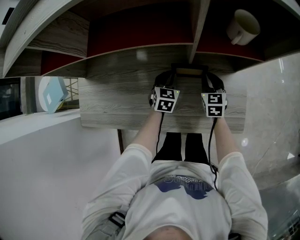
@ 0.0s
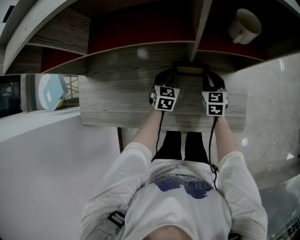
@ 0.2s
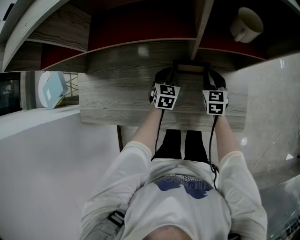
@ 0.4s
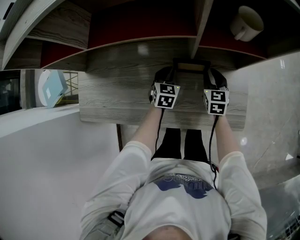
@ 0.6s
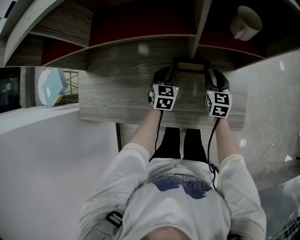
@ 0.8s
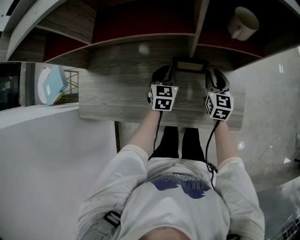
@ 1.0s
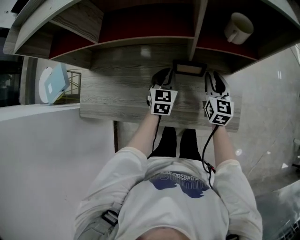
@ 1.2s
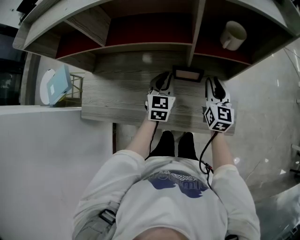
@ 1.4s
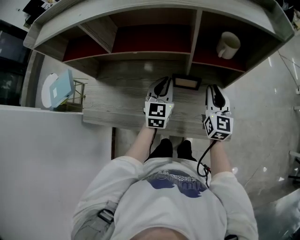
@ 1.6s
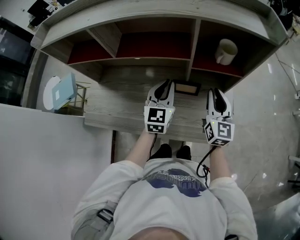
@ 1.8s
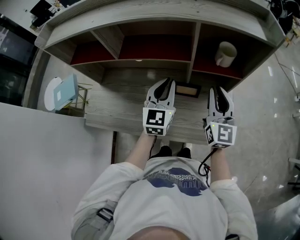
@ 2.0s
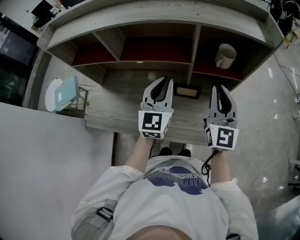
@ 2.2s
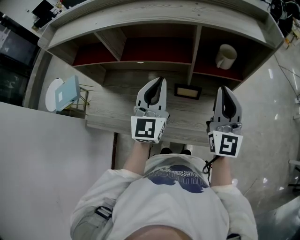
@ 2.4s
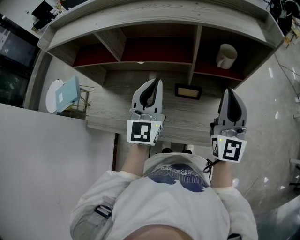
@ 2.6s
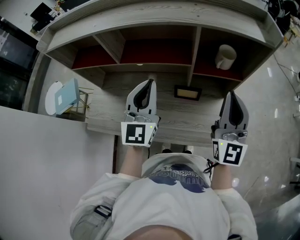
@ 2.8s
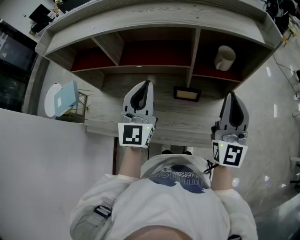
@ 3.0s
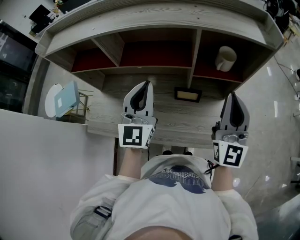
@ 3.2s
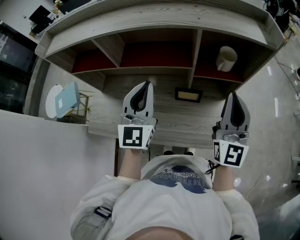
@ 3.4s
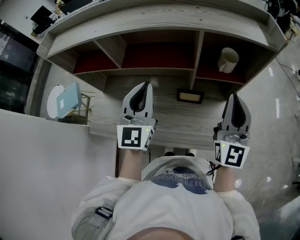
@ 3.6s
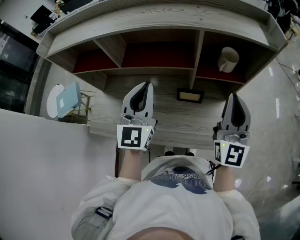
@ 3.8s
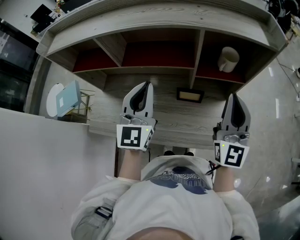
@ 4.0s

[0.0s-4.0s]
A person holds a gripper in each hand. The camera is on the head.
0.0s to 1.4s: Both grippers travel together upward, roughly 15 cm. The right gripper swivels about 20 degrees.
1.4s to 2.6s: The grippers both shift upward by approximately 25 cm. The right gripper swivels roughly 30 degrees, and closes up; the left gripper rotates about 30 degrees.
2.6s to 4.0s: The grippers make only small movements.

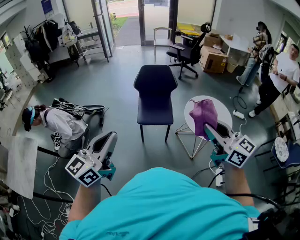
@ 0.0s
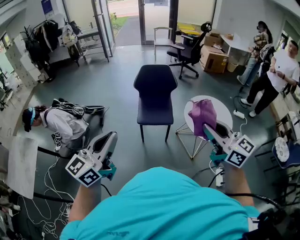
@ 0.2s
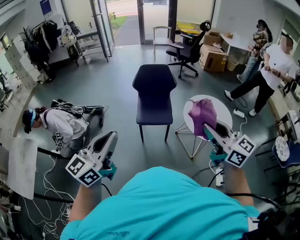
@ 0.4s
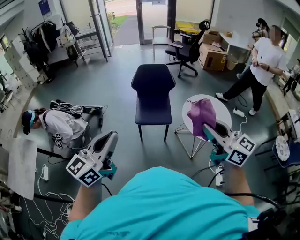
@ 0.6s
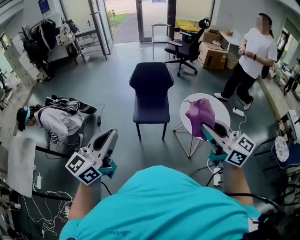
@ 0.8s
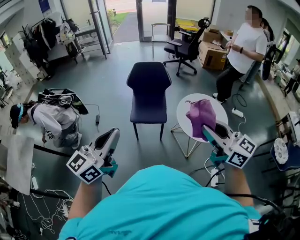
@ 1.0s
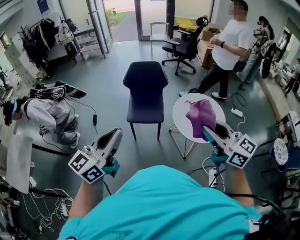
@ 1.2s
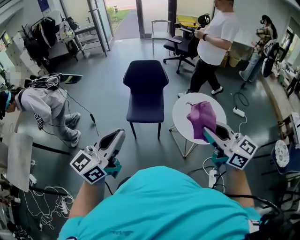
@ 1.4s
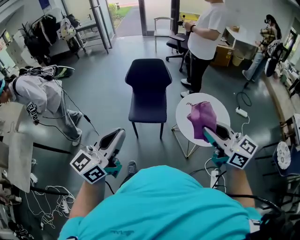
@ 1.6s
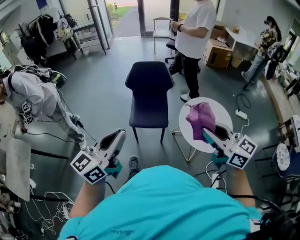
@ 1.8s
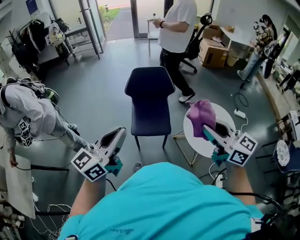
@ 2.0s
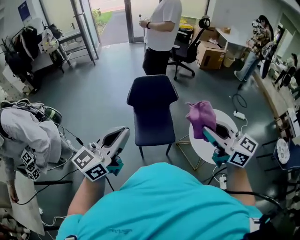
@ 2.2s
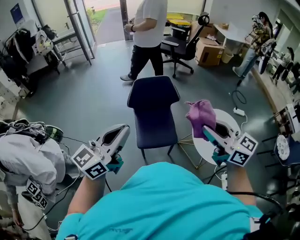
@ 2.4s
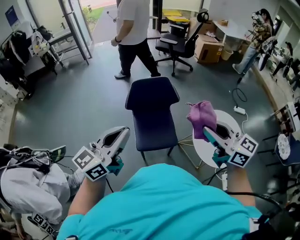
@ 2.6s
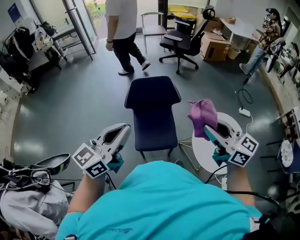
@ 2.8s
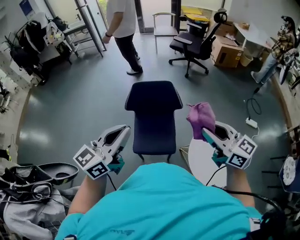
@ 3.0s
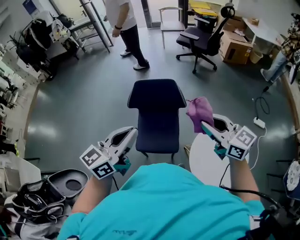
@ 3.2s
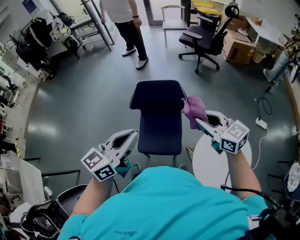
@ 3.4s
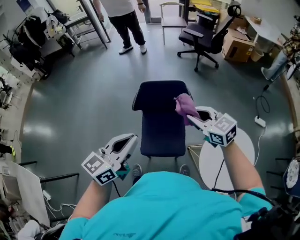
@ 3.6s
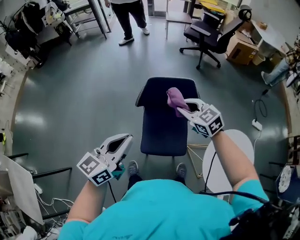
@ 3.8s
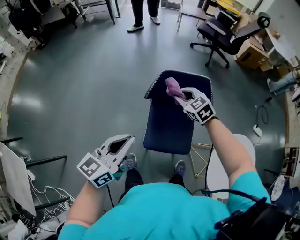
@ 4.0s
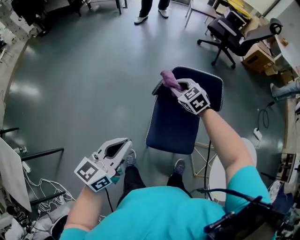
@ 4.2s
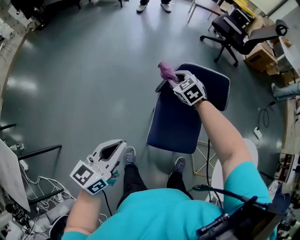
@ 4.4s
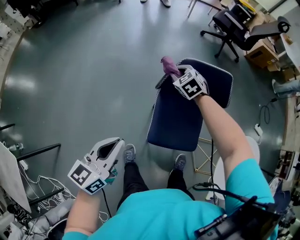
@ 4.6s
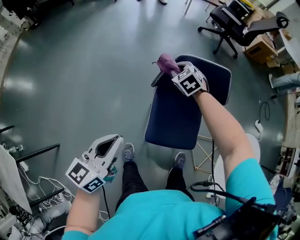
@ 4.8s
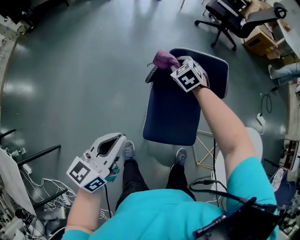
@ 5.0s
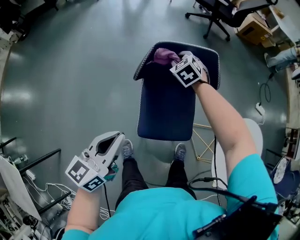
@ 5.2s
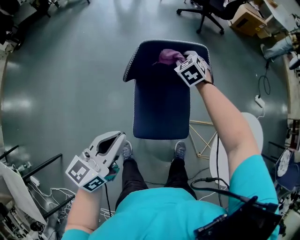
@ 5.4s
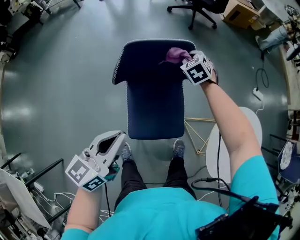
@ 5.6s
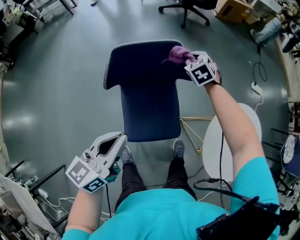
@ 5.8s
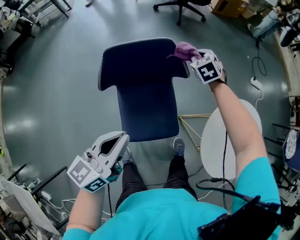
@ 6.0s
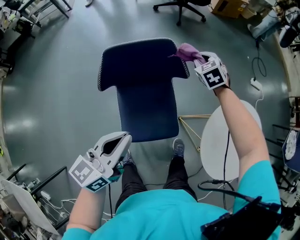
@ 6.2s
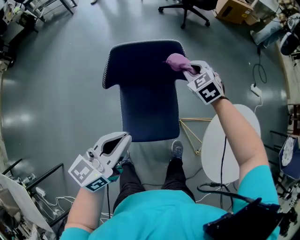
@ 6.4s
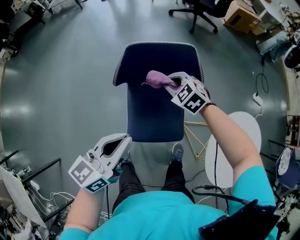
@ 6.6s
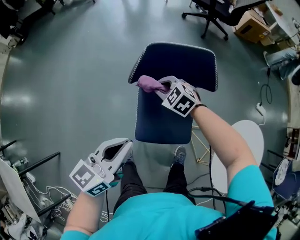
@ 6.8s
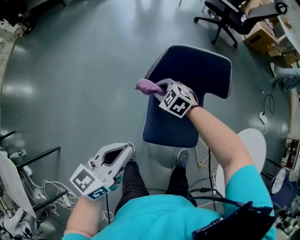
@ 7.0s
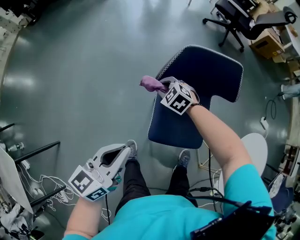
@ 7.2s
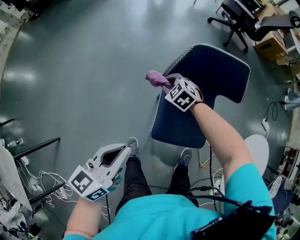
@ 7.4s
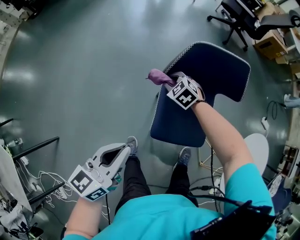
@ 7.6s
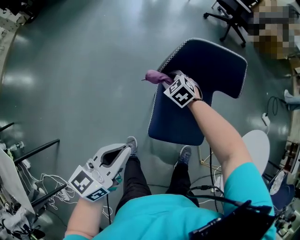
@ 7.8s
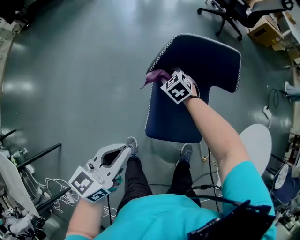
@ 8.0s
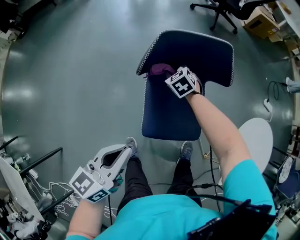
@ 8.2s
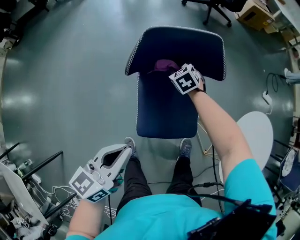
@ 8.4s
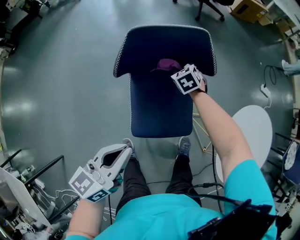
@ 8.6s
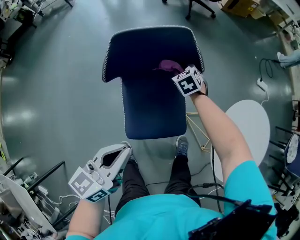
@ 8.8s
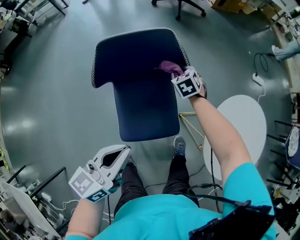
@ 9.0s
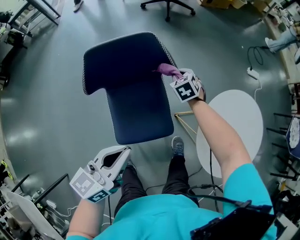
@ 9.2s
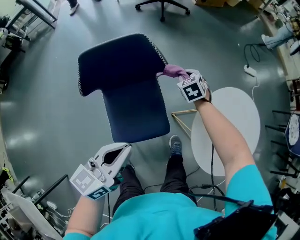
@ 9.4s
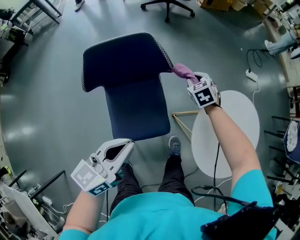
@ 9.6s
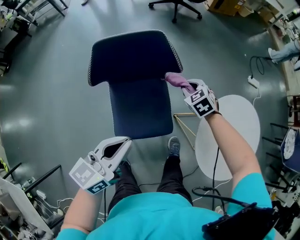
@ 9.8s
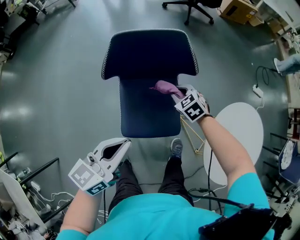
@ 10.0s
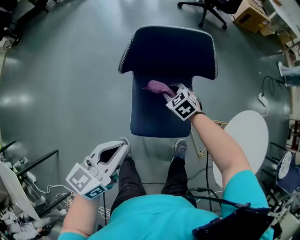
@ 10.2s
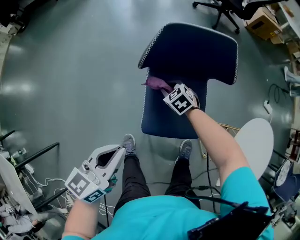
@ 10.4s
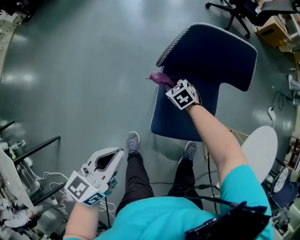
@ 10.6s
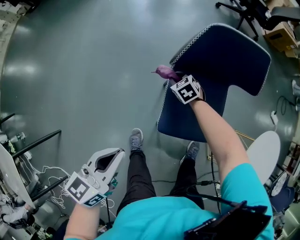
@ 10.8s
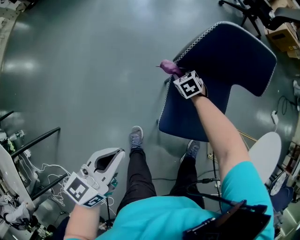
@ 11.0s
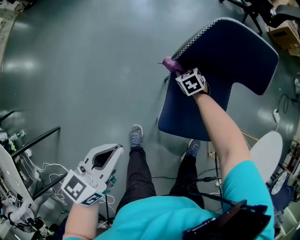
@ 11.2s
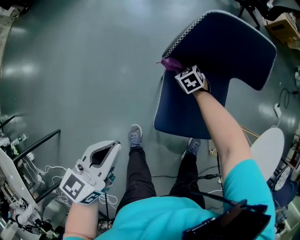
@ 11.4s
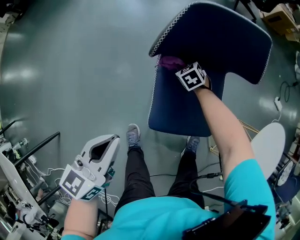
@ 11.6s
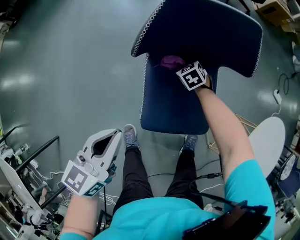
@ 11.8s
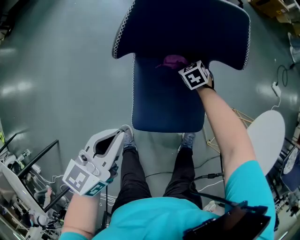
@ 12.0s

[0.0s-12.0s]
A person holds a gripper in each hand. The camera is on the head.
0.0s to 1.6s: Both grippers travel together to the right and forward, some 20 cm.
1.6s to 3.0s: Both grippers are carried forward, about 40 cm.
3.0s to 4.4s: The left gripper moves to the left and downward, approximately 35 cm, and rotates approximately 20 degrees, while the right gripper is displaced forward, to the left and downward by approximately 70 cm, and tilts its fingers approximately 40 degrees downward.
4.4s to 6.0s: The left gripper ends up approximately 25 cm from where it was, and turns by approximately 20 degrees. The right gripper shifts by about 40 cm, and swivels roughly 40 degrees.
6.0s to 7.6s: The right gripper moves roughly 50 cm, and turns by roughly 40 degrees. Meanwhile the left gripper shifts by roughly 30 cm.
7.6s to 9.0s: The right gripper ends up about 40 cm from where it was, and rotates about 40 degrees. The left gripper shifts by about 25 cm, and turns by approximately 20 degrees.
9.0s to 10.4s: The right gripper changes place by some 30 cm, and swivels about 30 degrees; the left gripper changes place by approximately 15 cm.
10.4s to 12.0s: The left gripper travels downward and forward by some 15 cm, and travels to the left and back again, approximately 15 cm each way. The right gripper is displaced to the right, downward and forward by roughly 20 cm.

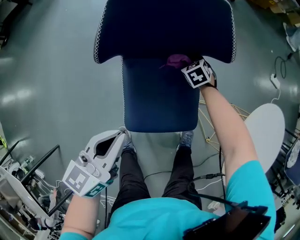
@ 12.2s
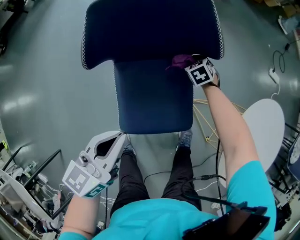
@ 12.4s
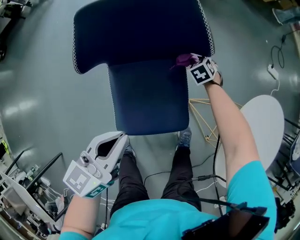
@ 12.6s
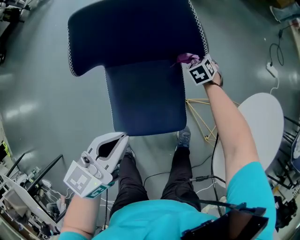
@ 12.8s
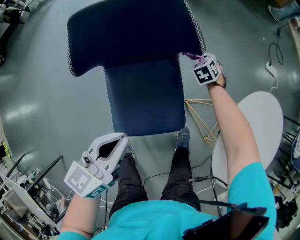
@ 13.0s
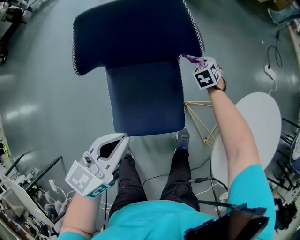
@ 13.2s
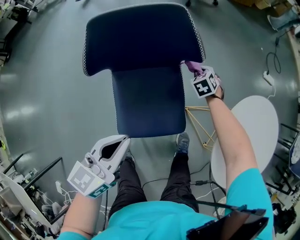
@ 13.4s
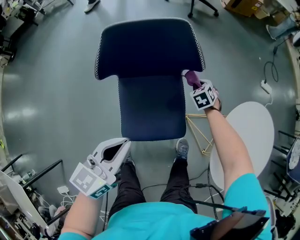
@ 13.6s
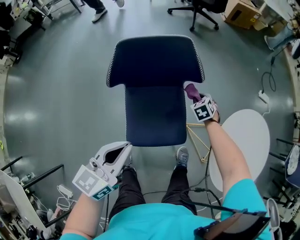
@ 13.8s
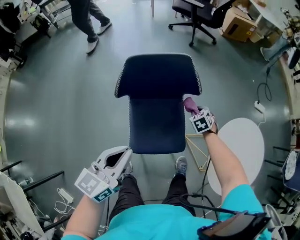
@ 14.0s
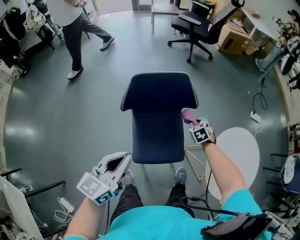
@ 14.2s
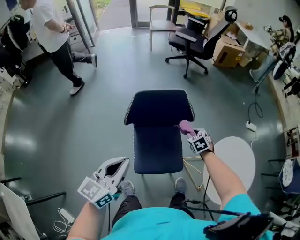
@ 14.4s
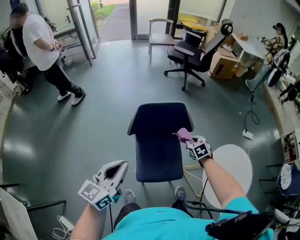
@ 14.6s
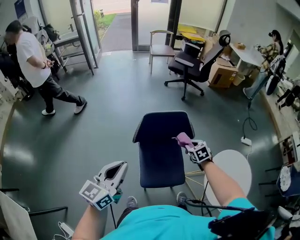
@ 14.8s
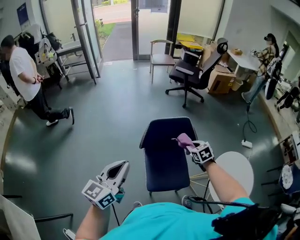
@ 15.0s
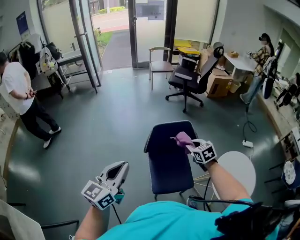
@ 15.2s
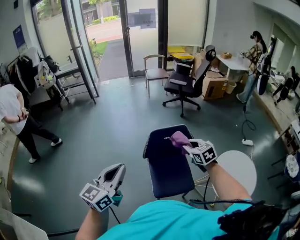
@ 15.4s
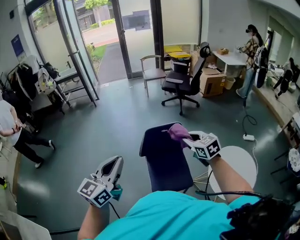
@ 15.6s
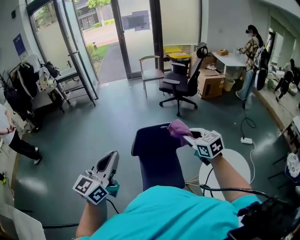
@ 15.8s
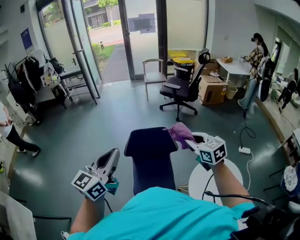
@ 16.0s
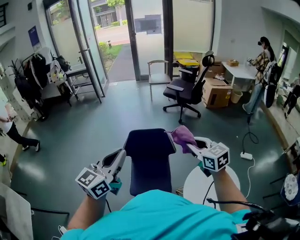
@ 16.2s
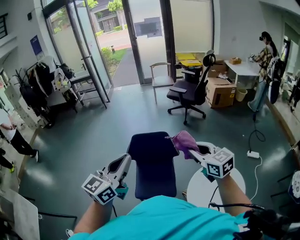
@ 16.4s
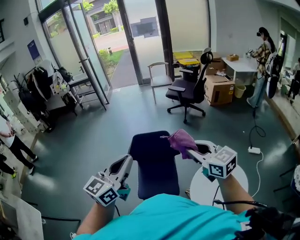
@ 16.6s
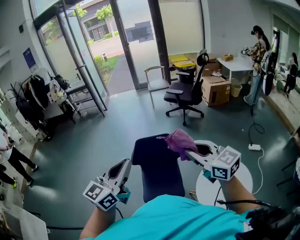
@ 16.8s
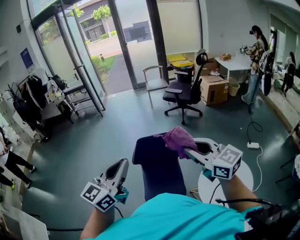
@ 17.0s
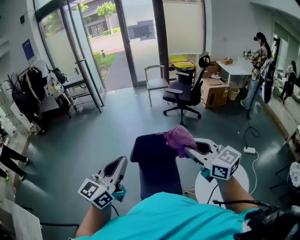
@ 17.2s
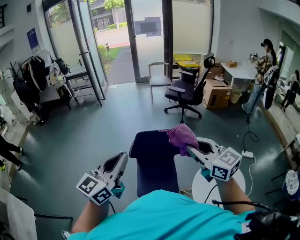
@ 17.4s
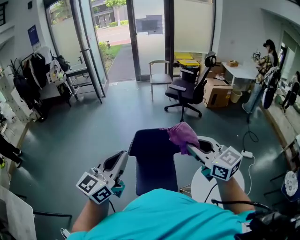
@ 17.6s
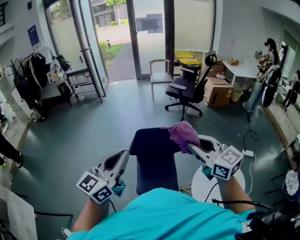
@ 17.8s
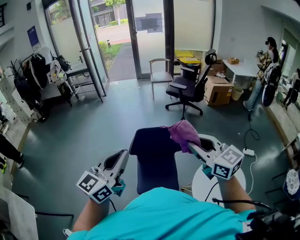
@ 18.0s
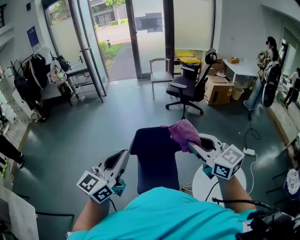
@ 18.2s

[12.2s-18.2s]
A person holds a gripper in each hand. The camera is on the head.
12.2s to 13.8s: The right gripper goes roughly 20 cm to the right and upward. Meanwhile the left gripper travels upward and to the right by roughly 15 cm.
13.8s to 15.2s: Both grippers move upward and to the left, approximately 40 cm. The right gripper turns by about 30 degrees.
15.2s to 16.6s: The left gripper travels to the right by about 30 cm, while the right gripper is displaced upward, to the right and backward by approximately 35 cm, and tilts its fingers about 30 degrees upward.
16.6s to 18.2s: The right gripper goes some 10 cm to the left and upward, while the left gripper heads to the left, covering about 10 cm.

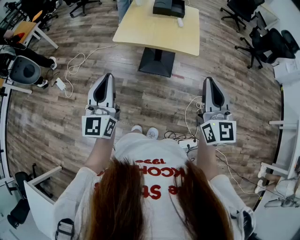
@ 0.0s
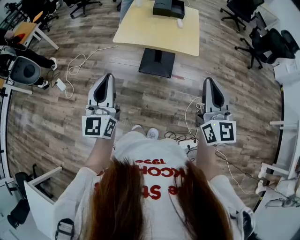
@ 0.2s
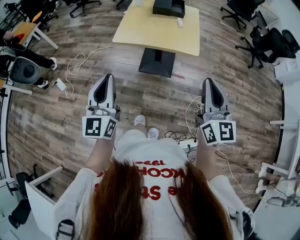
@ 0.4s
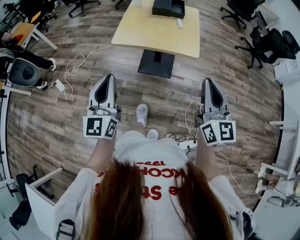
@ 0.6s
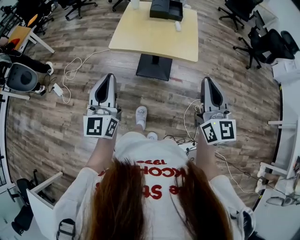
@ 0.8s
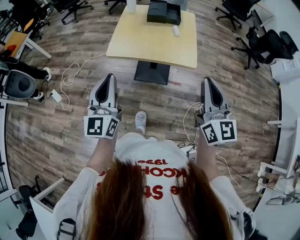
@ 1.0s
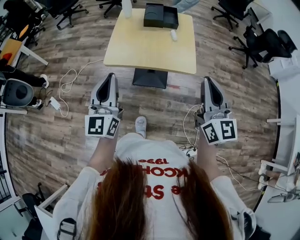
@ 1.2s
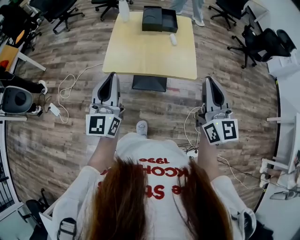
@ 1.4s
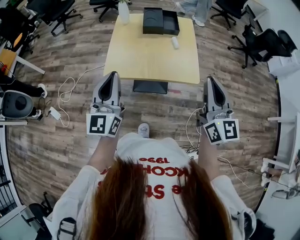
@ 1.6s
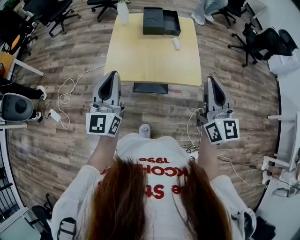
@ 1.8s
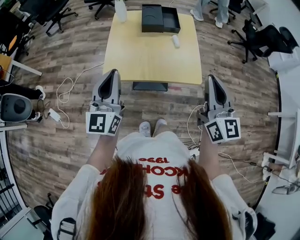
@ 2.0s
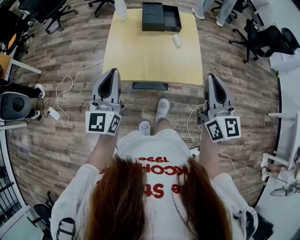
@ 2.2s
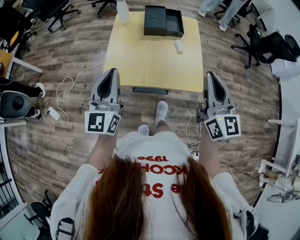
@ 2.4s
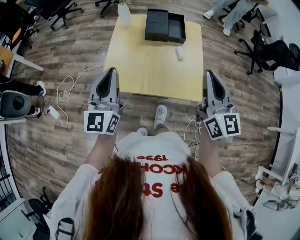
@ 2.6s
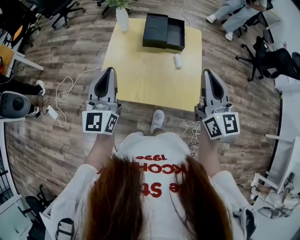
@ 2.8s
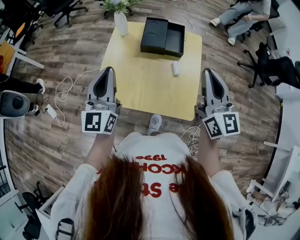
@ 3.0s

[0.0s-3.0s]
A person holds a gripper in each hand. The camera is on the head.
0.0s to 1.6s: Both grippers move forward, approximately 20 cm.
1.6s to 3.0s: Both grippers travel together forward, approximately 20 cm.
